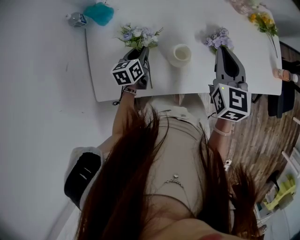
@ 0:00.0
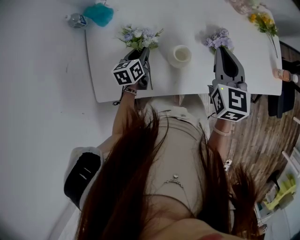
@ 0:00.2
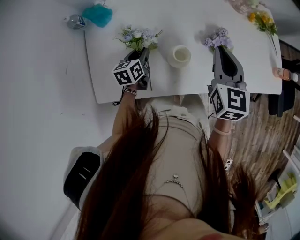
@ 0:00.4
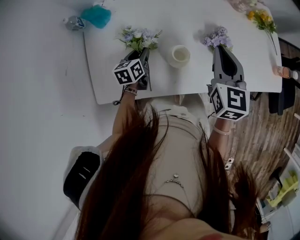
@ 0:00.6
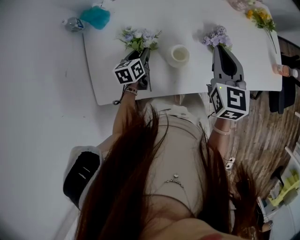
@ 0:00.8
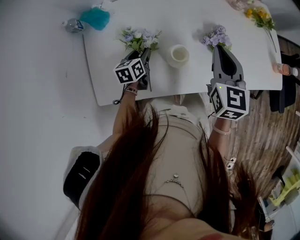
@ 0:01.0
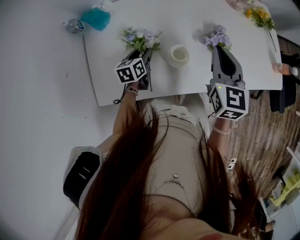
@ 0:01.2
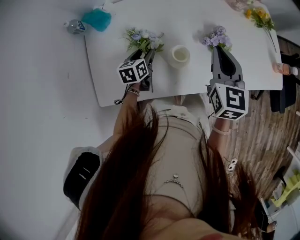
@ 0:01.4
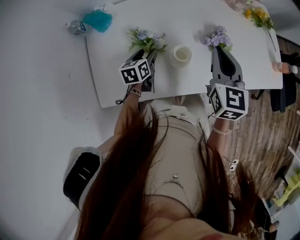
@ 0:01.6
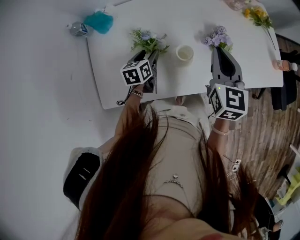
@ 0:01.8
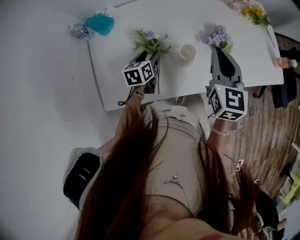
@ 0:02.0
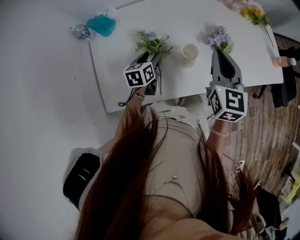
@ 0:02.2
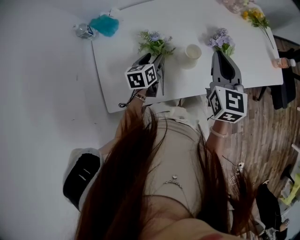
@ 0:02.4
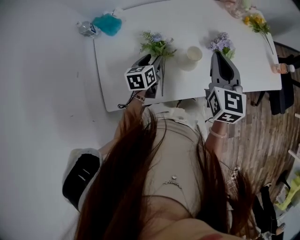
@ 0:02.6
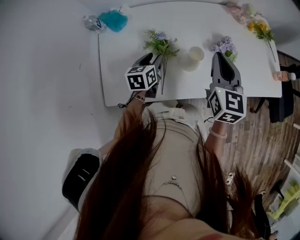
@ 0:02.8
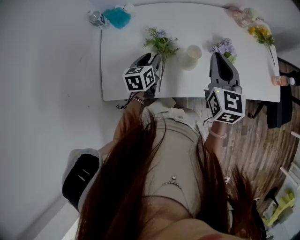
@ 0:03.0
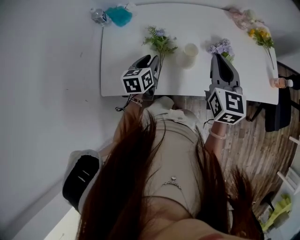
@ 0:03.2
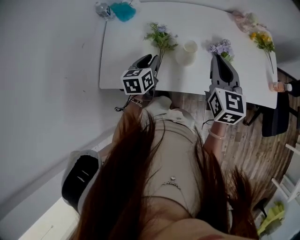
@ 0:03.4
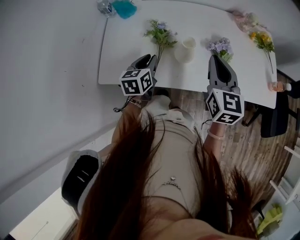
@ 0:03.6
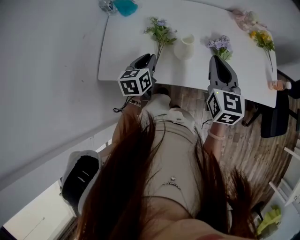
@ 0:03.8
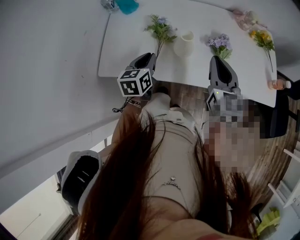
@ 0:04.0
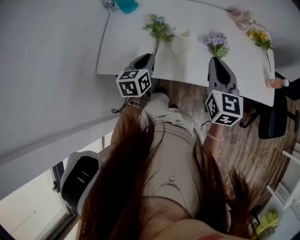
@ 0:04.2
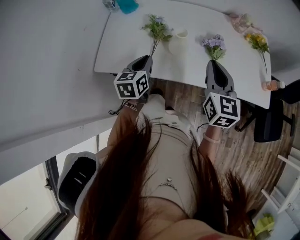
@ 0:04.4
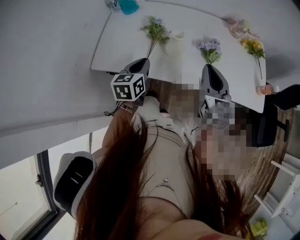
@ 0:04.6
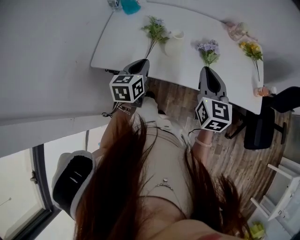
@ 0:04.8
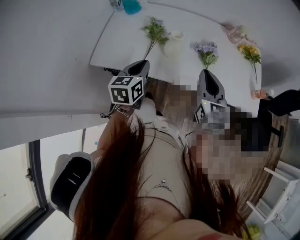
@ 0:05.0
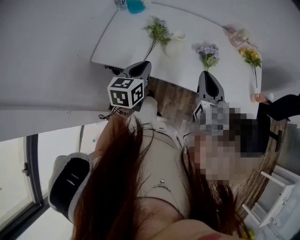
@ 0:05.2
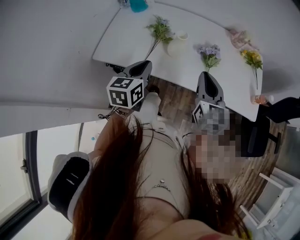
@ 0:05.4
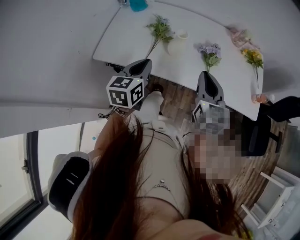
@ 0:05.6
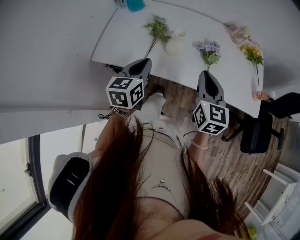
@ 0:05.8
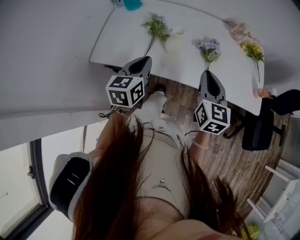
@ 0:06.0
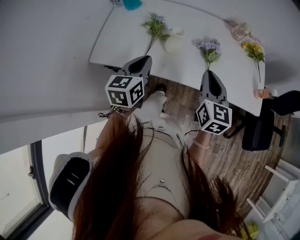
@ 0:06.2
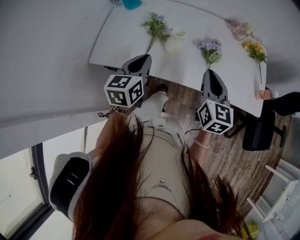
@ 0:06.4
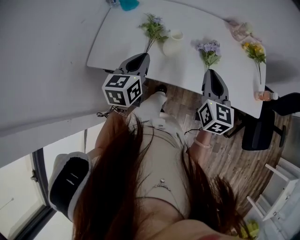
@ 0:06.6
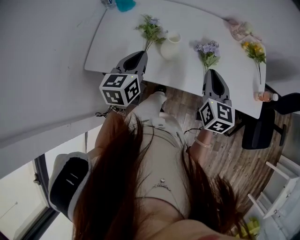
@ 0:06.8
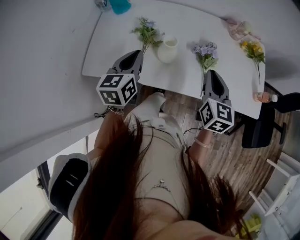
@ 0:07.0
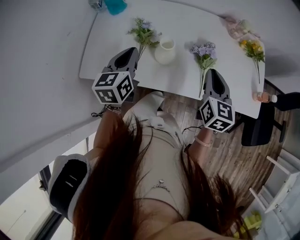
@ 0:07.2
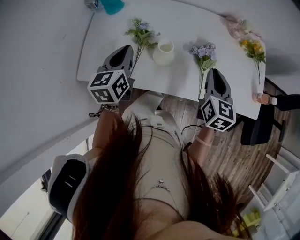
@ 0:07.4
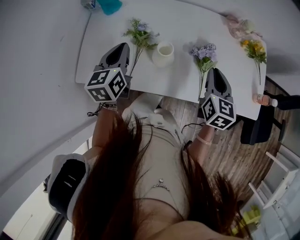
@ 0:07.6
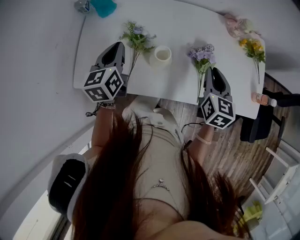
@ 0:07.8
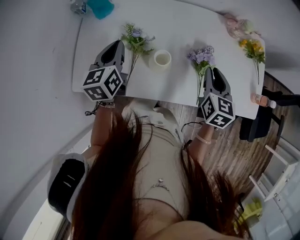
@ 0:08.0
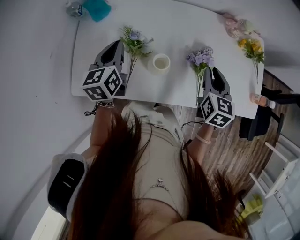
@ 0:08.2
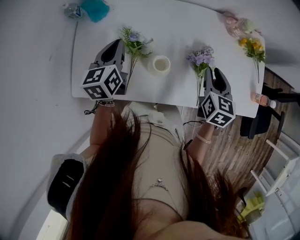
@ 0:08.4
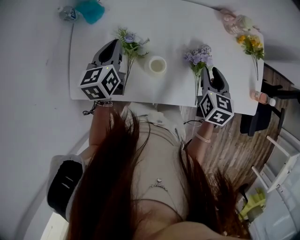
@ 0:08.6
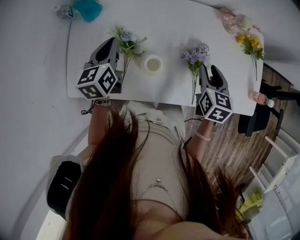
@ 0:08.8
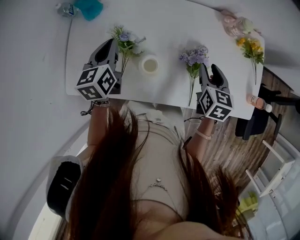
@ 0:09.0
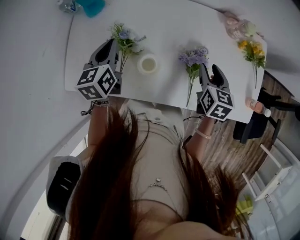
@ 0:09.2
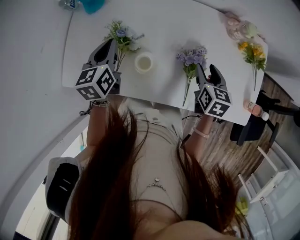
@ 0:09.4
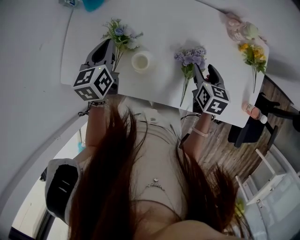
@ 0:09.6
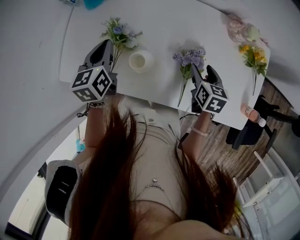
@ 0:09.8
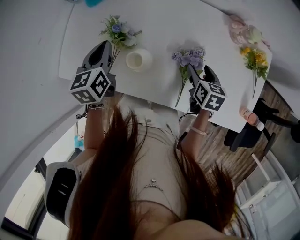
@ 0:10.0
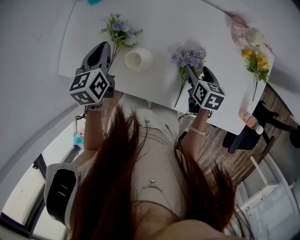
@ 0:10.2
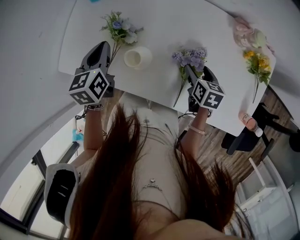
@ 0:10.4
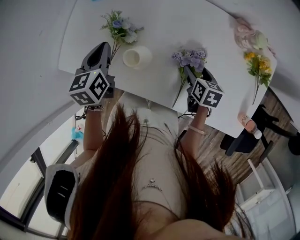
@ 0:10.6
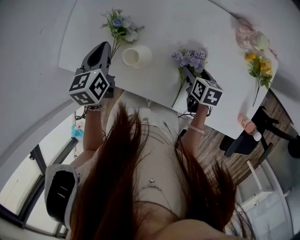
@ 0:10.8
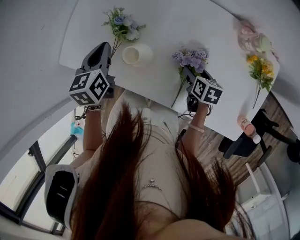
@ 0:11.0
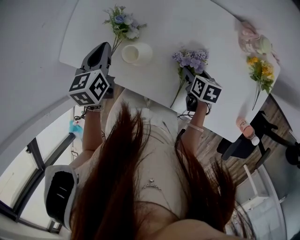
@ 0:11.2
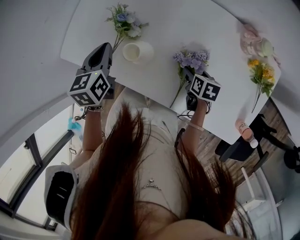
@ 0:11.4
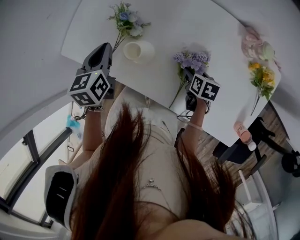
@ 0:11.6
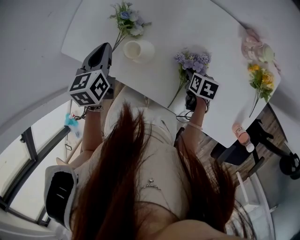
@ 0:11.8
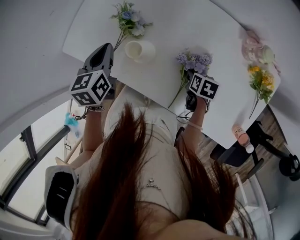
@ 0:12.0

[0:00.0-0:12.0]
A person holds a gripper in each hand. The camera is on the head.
0:00.0 to 0:01.6: The left gripper opens its fingers.
0:01.6 to 0:03.0: The left gripper goes about 5 cm upward; the right gripper moves some 5 cm.
0:03.0 to 0:04.4: The right gripper shifts about 15 cm backward and to the right; the left gripper is displaced backward and upward by roughly 15 cm, and closes up.
0:04.4 to 0:06.0: The left gripper heads upward and backward, covering some 10 cm.
0:06.0 to 0:07.6: Both grippers move forward, about 15 cm.
0:07.6 to 0:09.0: The left gripper shifts about 10 cm forward; the right gripper moves forward and downward, some 10 cm, and opens up.
0:09.0 to 0:10.4: The right gripper travels downward by about 10 cm, rotates approximately 20 degrees, and opens. The left gripper ends up some 5 cm from where it was.
0:10.4 to 0:12.0: The right gripper heads downward, covering some 5 cm.

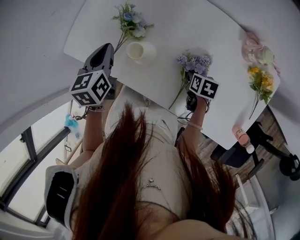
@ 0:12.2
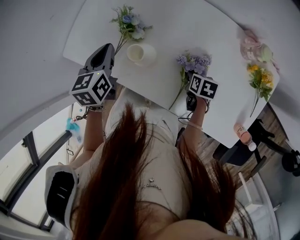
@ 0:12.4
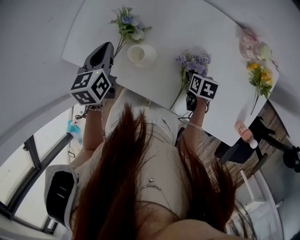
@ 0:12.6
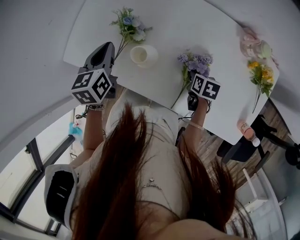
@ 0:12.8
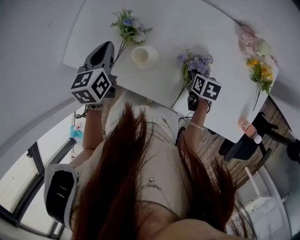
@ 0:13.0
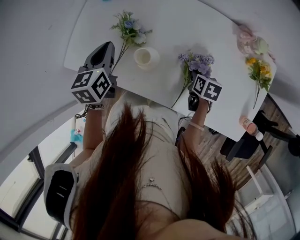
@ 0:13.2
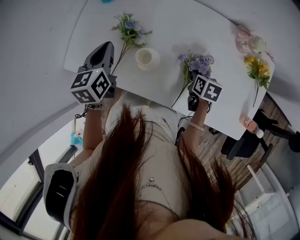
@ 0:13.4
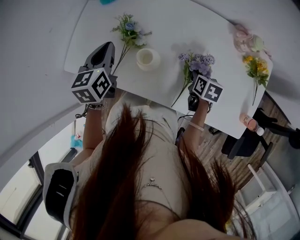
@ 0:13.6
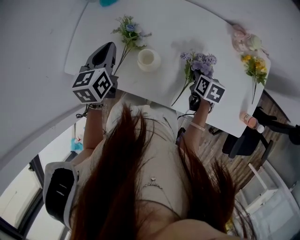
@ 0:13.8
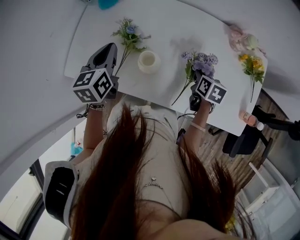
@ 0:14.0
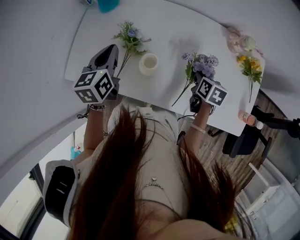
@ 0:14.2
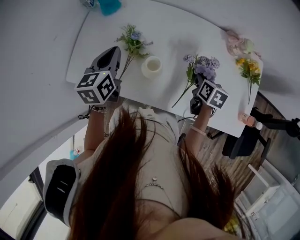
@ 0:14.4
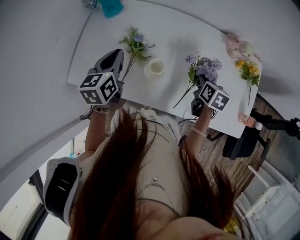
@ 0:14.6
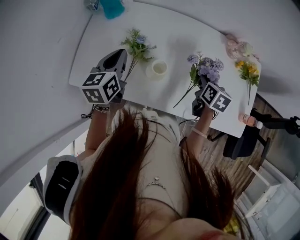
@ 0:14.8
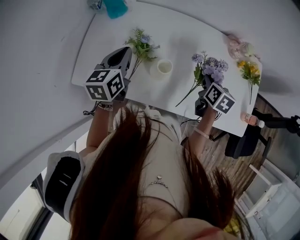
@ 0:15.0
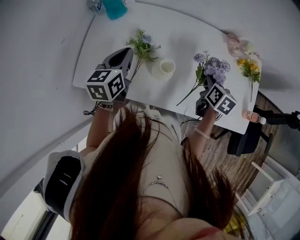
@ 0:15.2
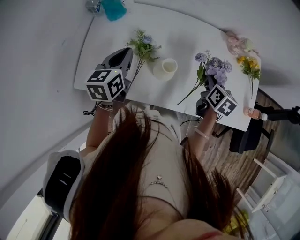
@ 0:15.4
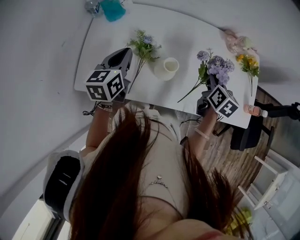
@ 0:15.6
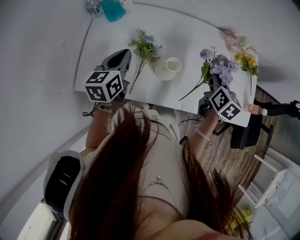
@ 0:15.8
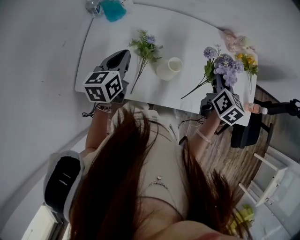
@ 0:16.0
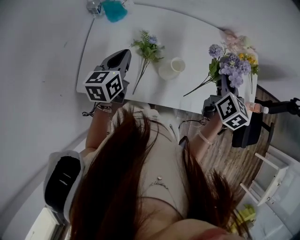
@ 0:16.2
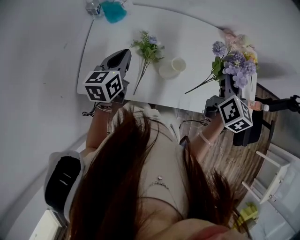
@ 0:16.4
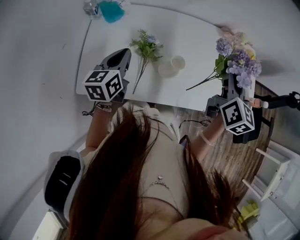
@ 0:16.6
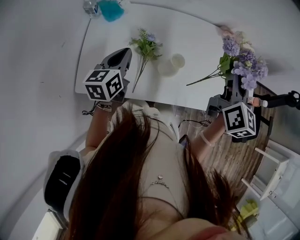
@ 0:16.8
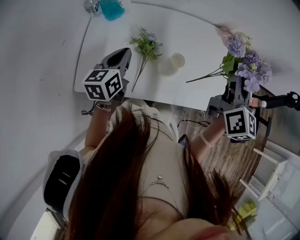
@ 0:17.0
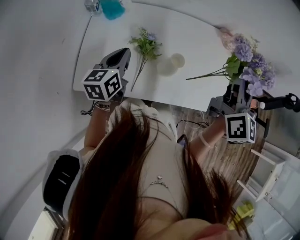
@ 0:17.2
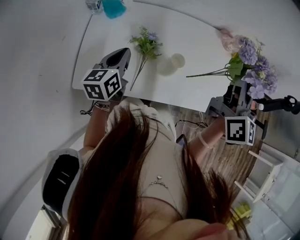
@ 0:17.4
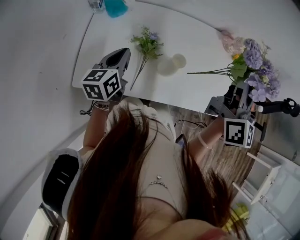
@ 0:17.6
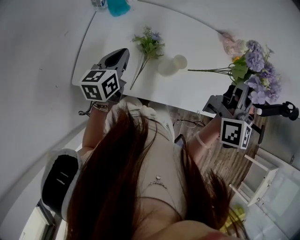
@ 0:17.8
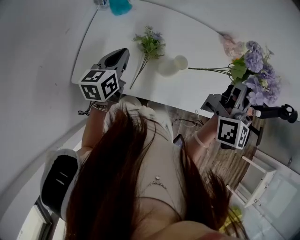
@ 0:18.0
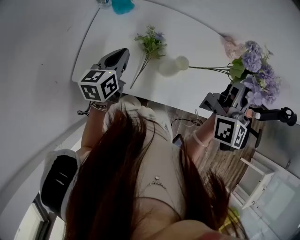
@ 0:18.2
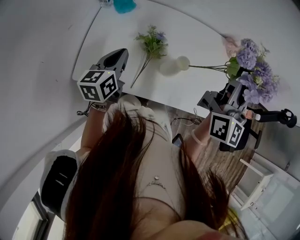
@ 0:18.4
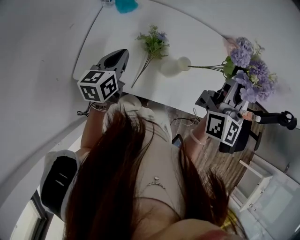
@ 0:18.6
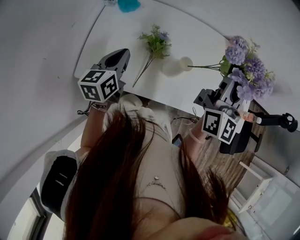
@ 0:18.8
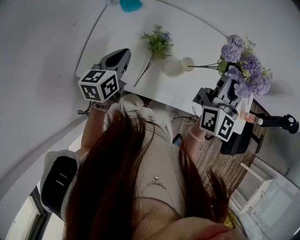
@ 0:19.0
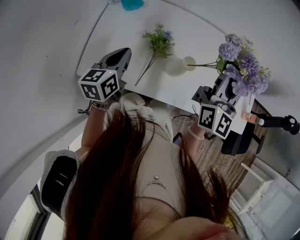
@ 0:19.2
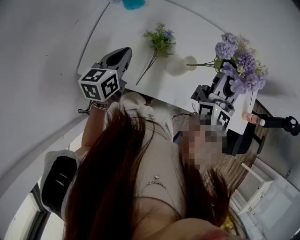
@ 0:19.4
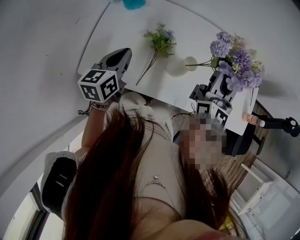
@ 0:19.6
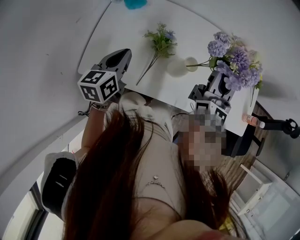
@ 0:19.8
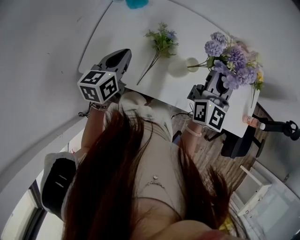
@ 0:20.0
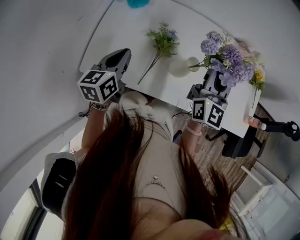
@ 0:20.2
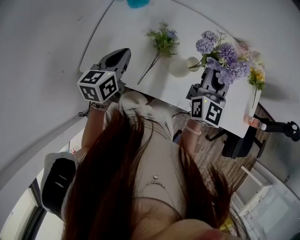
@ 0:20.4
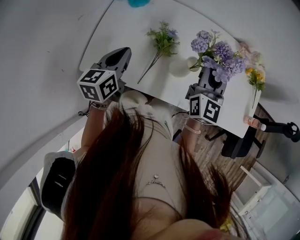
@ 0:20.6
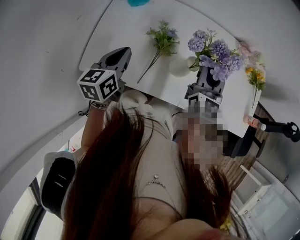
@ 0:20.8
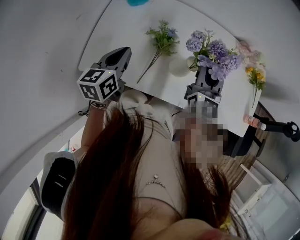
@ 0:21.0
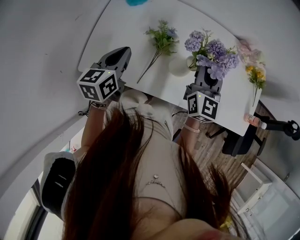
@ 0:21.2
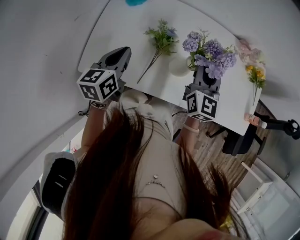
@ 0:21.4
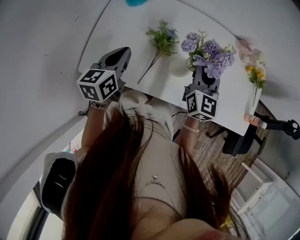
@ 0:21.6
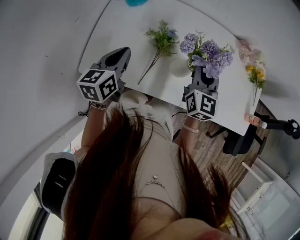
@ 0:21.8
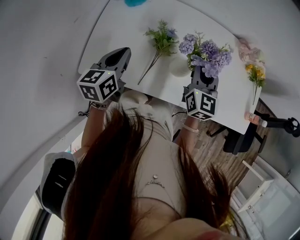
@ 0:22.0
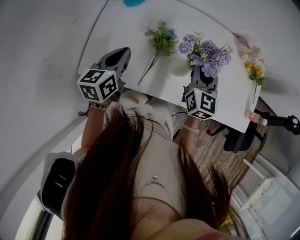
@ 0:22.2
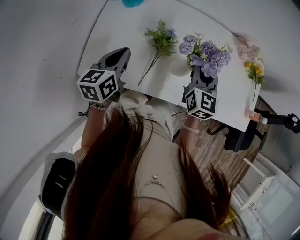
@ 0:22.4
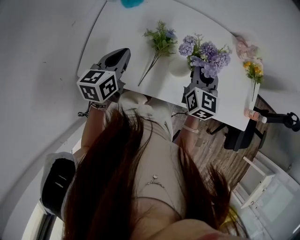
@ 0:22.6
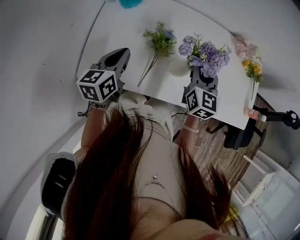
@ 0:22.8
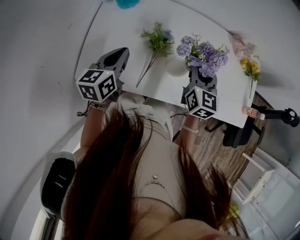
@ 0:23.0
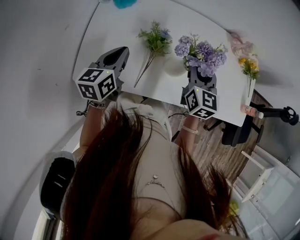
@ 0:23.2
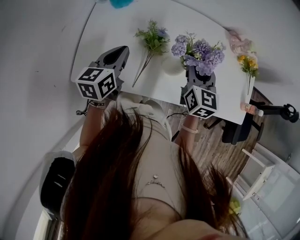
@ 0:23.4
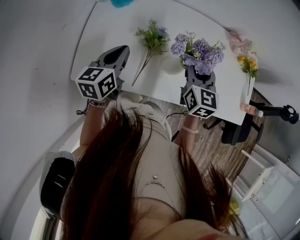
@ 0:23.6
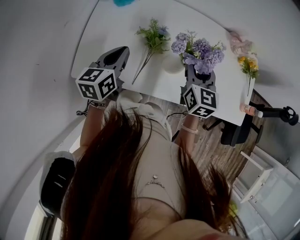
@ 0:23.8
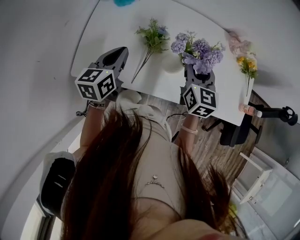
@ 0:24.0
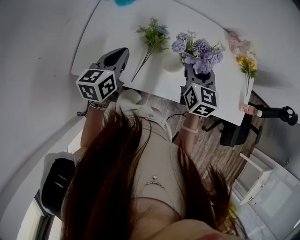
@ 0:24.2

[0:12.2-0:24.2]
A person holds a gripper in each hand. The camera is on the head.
0:12.2 to 0:13.8: The right gripper goes approximately 5 cm upward.
0:13.8 to 0:15.2: The right gripper goes about 10 cm upward.
0:15.2 to 0:16.6: The right gripper travels upward by approximately 20 cm, and rotates about 30 degrees.
0:16.6 to 0:18.2: The right gripper goes some 10 cm upward, and turns by approximately 30 degrees.
0:18.2 to 0:19.8: The right gripper travels downward and to the left by about 10 cm.
0:19.8 to 0:21.2: The right gripper is displaced downward by about 10 cm.
0:21.2 to 0:24.2: The grippers move only a little.
